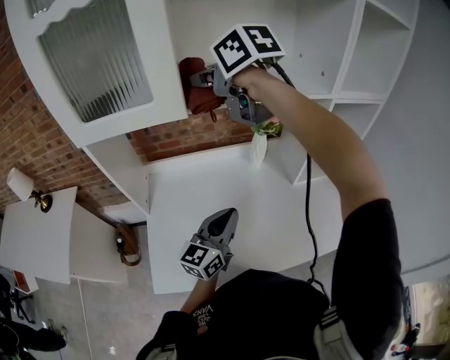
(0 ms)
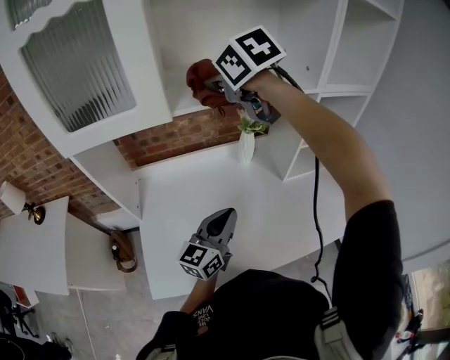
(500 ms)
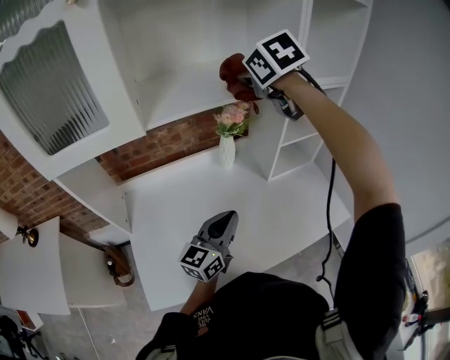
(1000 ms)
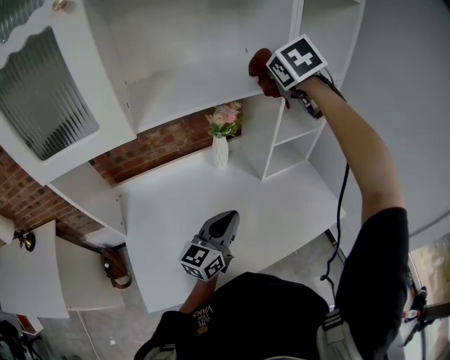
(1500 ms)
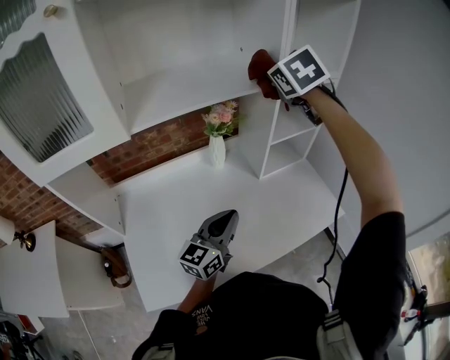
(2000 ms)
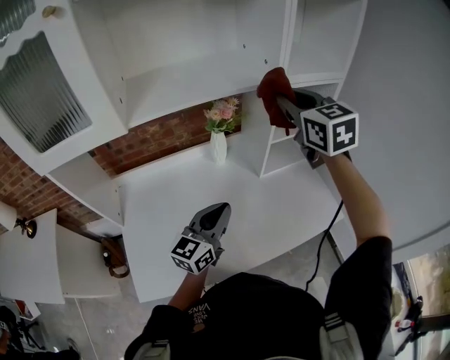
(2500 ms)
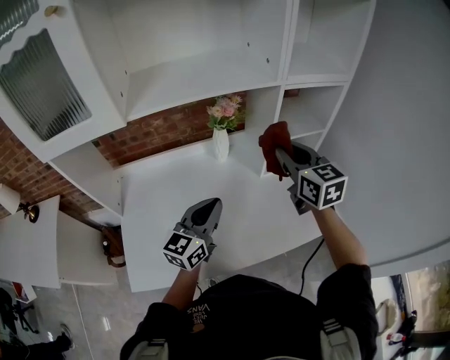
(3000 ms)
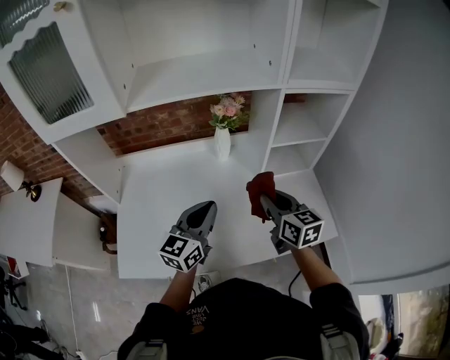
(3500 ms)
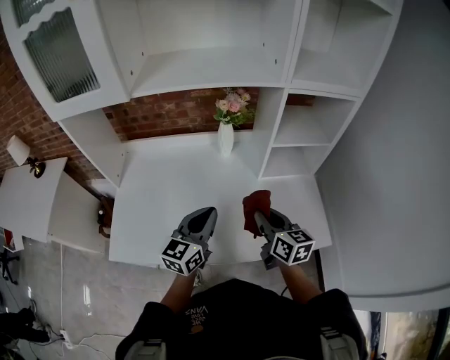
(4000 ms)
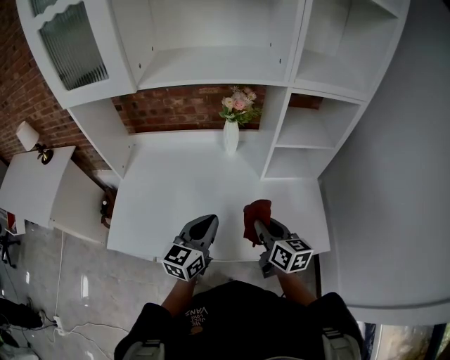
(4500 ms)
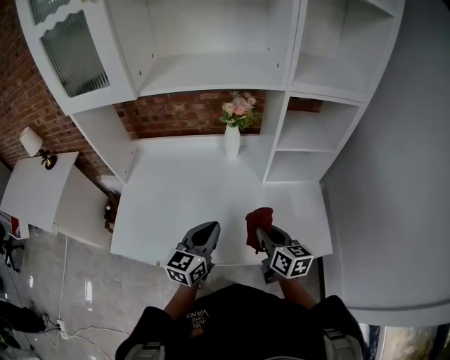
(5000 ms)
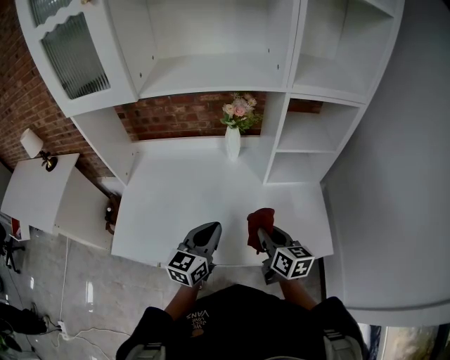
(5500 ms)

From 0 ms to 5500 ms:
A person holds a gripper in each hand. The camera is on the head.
From 0 ms to 2000 ms: The left gripper moves some 10 cm. The right gripper ends up some 35 cm from where it was, and swivels about 50 degrees.
From 2000 ms to 3500 ms: The right gripper moves downward, approximately 25 cm, and swivels approximately 50 degrees.
From 3500 ms to 5500 ms: The left gripper heads backward and downward, covering some 10 cm; the right gripper heads downward and backward, covering roughly 10 cm.

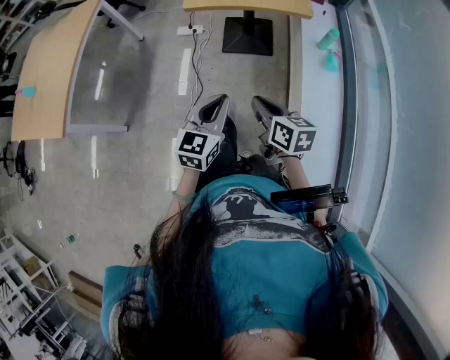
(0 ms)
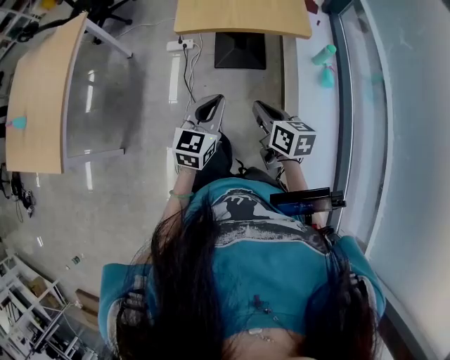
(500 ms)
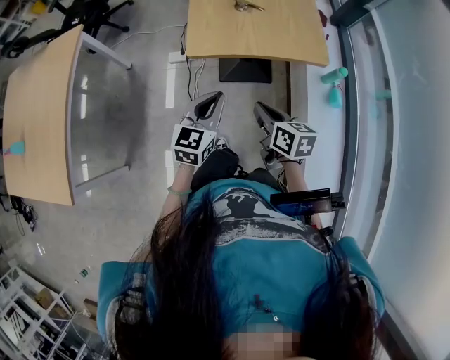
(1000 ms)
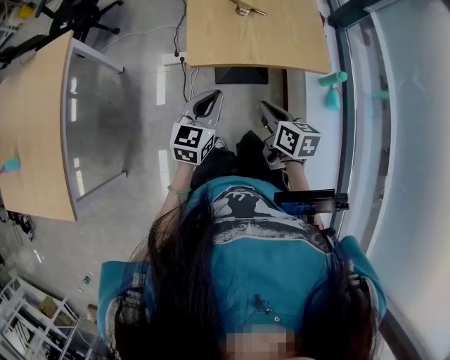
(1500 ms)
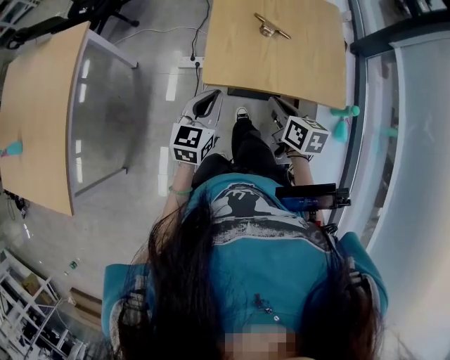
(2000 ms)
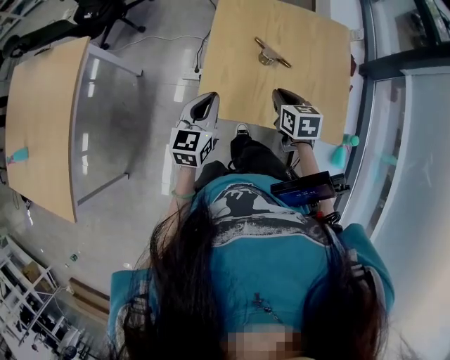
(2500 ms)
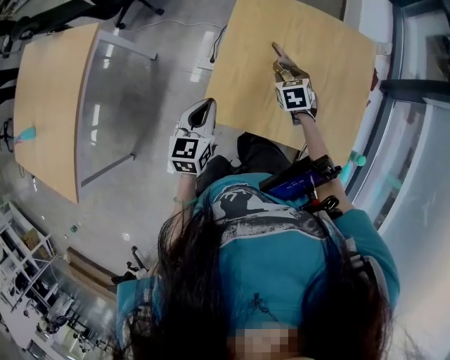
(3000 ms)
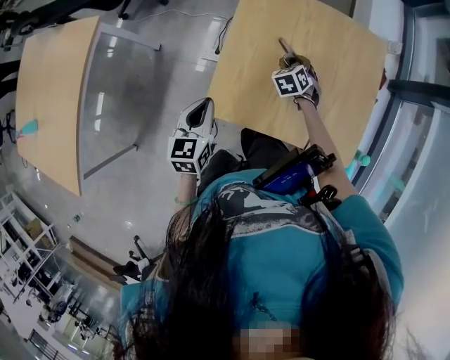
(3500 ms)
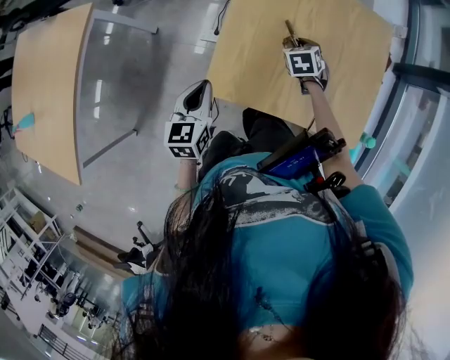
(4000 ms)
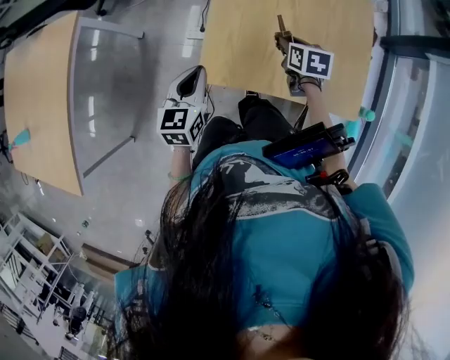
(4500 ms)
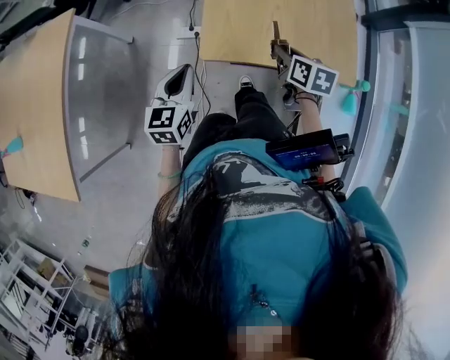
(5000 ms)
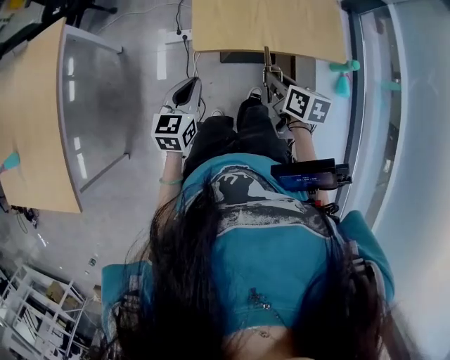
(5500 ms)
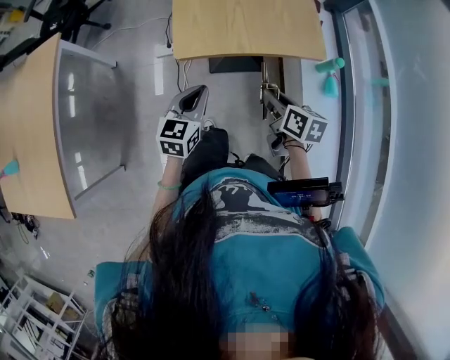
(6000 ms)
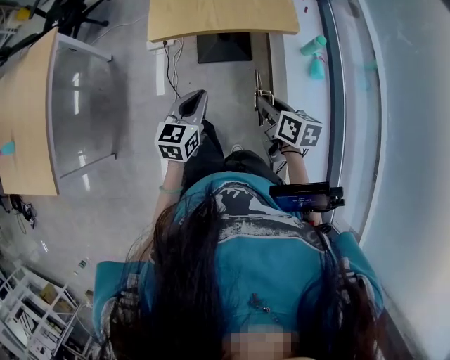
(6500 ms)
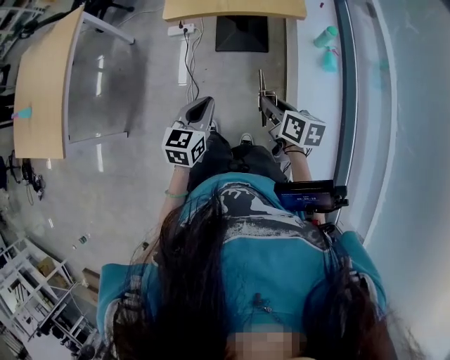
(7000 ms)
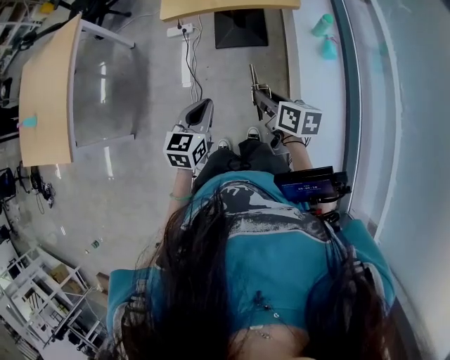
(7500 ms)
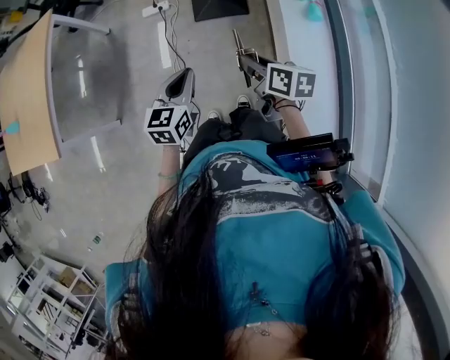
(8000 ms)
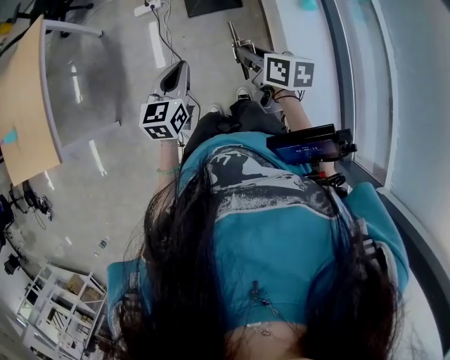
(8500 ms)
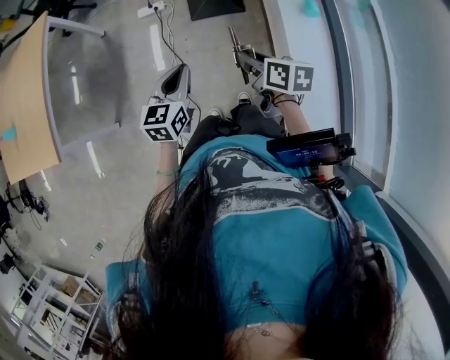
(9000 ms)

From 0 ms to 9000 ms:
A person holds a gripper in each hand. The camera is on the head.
From 0 ms to 2000 ms: The two grippers travel together, forward, roughly 50 cm.
From 2000 ms to 4500 ms: The right gripper heads forward, covering roughly 25 cm, while the left gripper moves forward, approximately 15 cm.
From 4500 ms to 7000 ms: The pair of grippers is taken backward, approximately 60 cm. The right gripper changes its angle by approximately 30 degrees.
From 7000 ms to 9000 ms: Both grippers move to the left, approximately 10 cm.

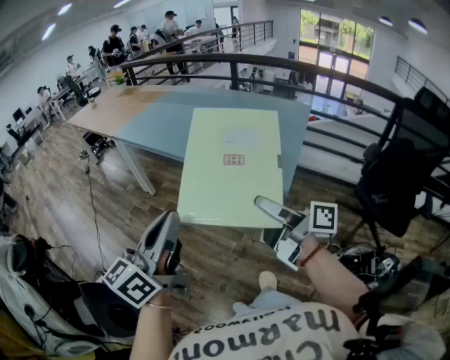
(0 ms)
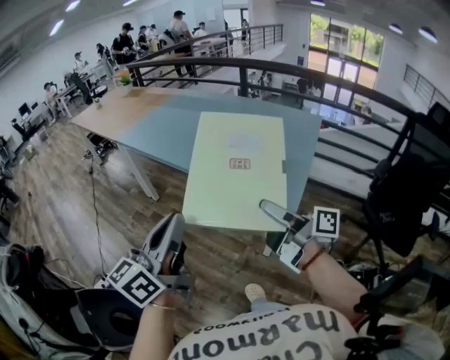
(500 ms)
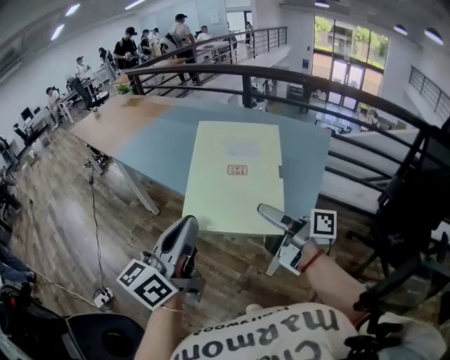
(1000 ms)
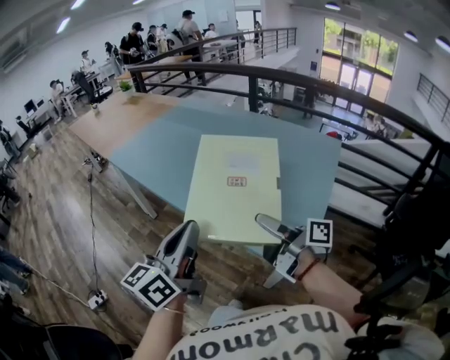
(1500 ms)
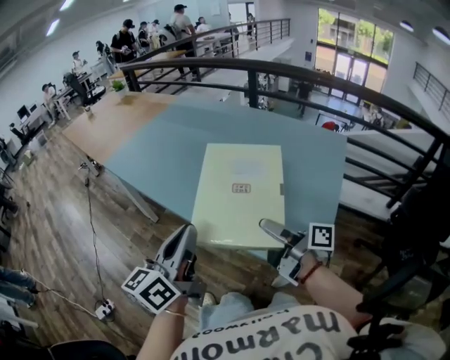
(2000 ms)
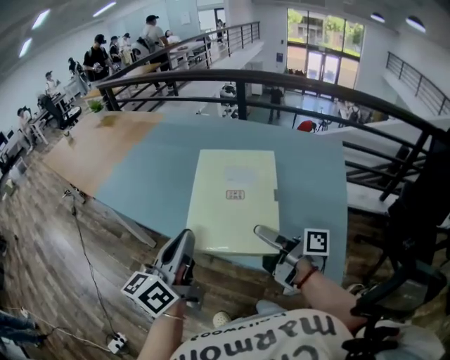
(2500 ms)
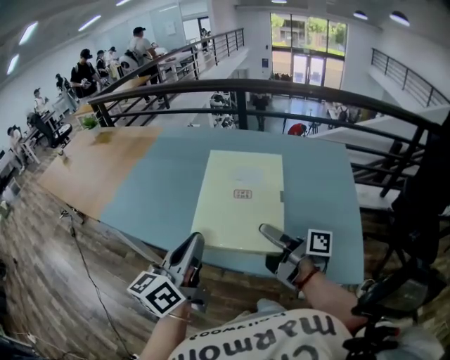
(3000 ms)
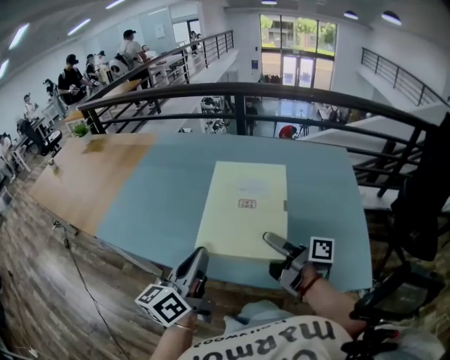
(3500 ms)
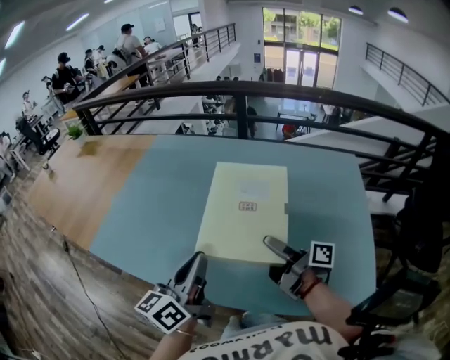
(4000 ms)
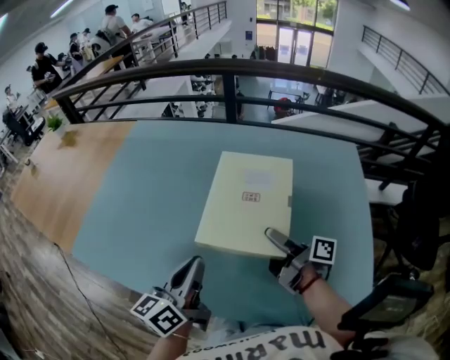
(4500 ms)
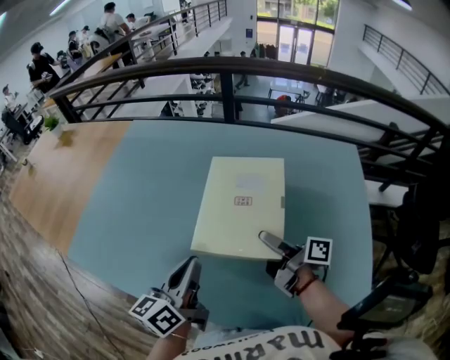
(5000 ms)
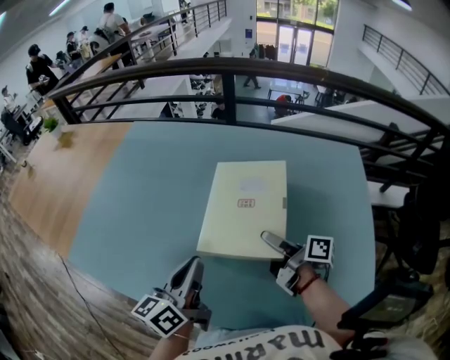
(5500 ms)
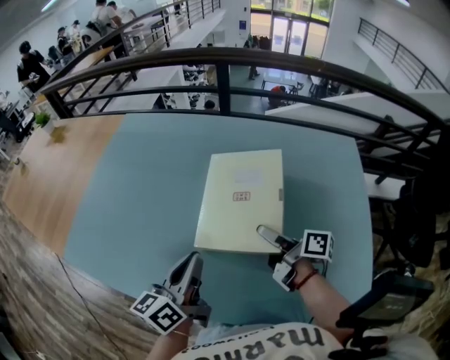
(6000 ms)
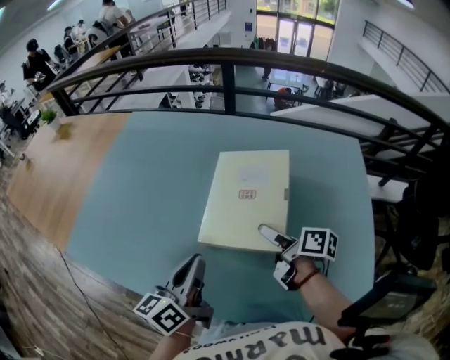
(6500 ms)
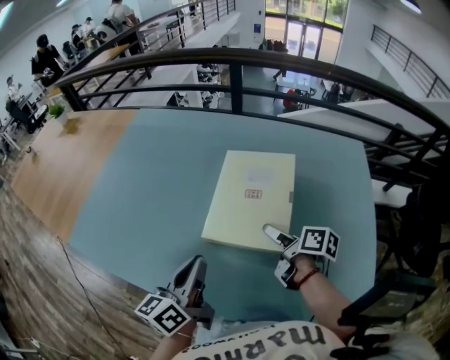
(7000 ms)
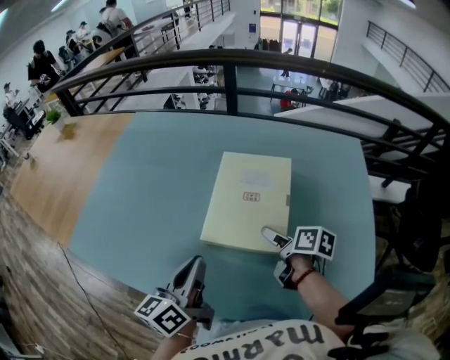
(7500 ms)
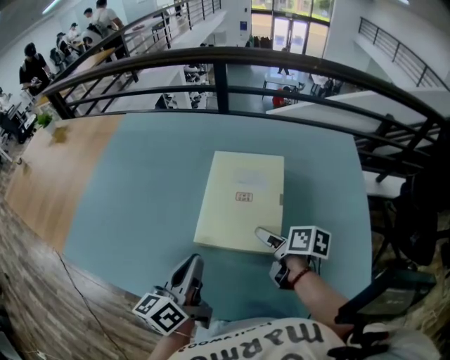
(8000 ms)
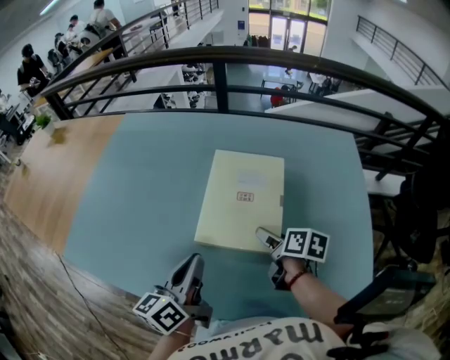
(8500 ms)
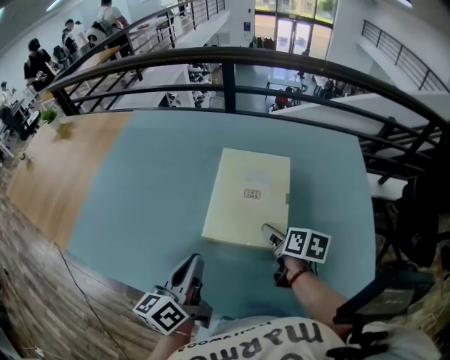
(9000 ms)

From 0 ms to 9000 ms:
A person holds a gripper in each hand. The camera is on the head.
From 0 ms to 2000 ms: Both grippers move forward, roughly 35 cm.
From 2000 ms to 4500 ms: Both grippers travel together forward, some 30 cm. The left gripper swivels roughly 20 degrees; the right gripper swivels approximately 30 degrees.
From 4500 ms to 7000 ms: The right gripper shifts by about 5 cm, and turns by roughly 30 degrees.
From 7000 ms to 9000 ms: The right gripper rotates approximately 20 degrees.

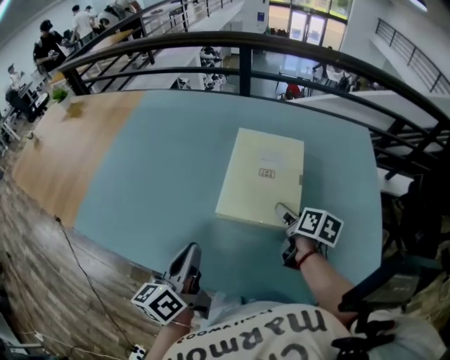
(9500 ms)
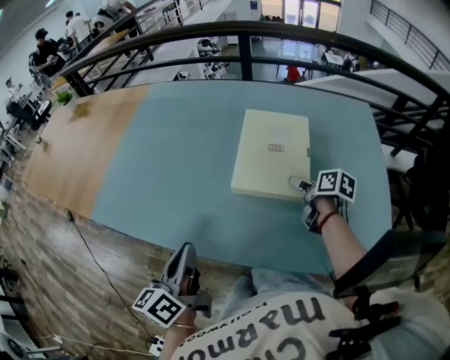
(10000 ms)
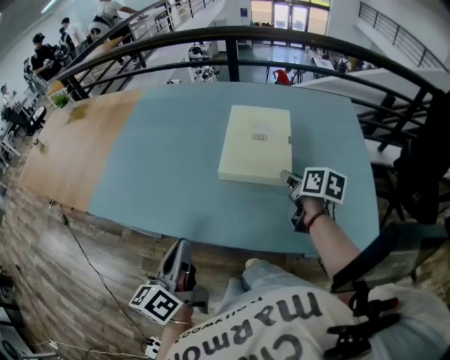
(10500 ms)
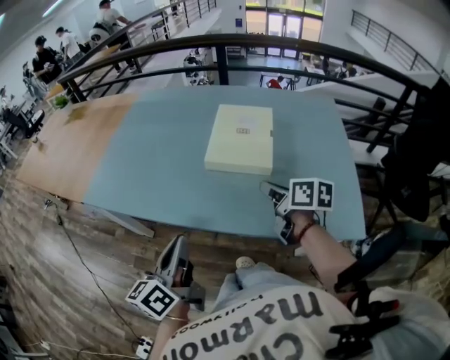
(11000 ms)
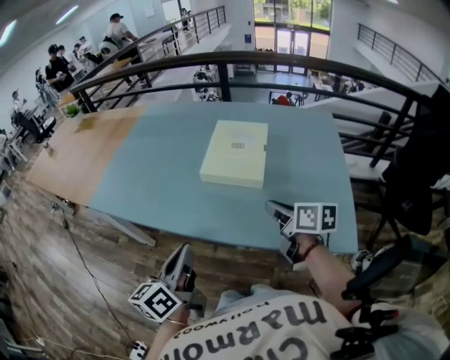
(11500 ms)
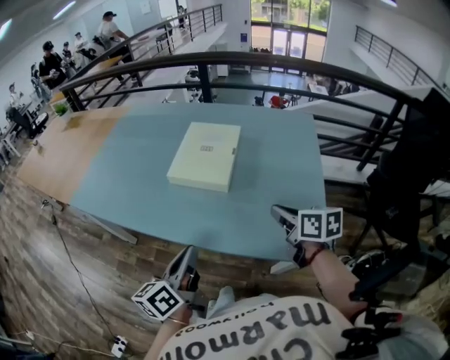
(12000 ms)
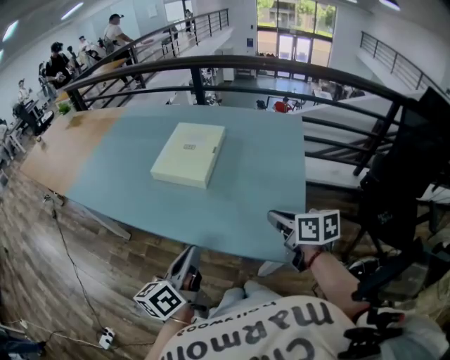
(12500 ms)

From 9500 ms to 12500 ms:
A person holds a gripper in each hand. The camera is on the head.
From 9500 ms to 11000 ms: The right gripper travels backward and upward by about 20 cm, changes its angle by about 20 degrees, and closes its fingers. The left gripper is displaced backward by roughly 20 cm.
From 11000 ms to 12500 ms: The right gripper heads to the right and backward, covering about 25 cm. The left gripper moves to the right, approximately 25 cm.
